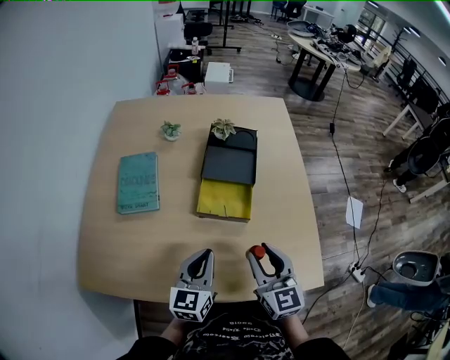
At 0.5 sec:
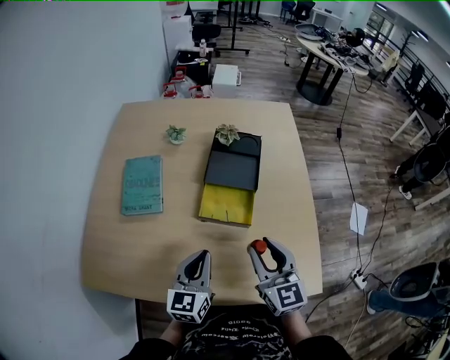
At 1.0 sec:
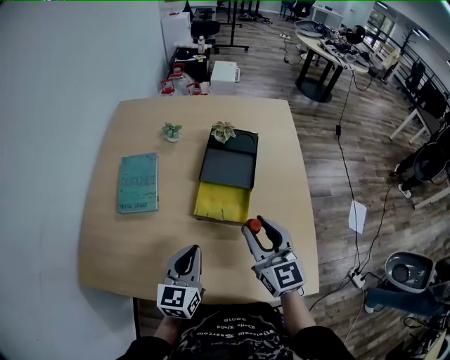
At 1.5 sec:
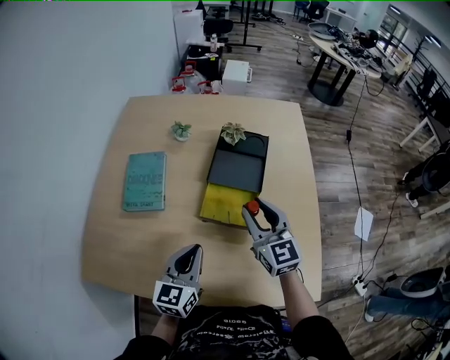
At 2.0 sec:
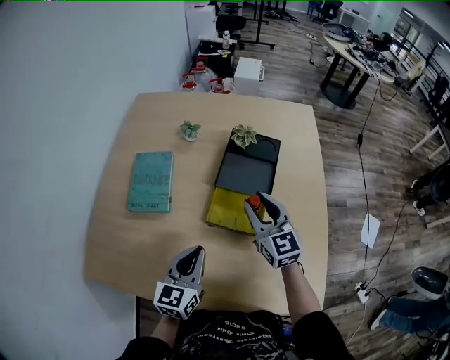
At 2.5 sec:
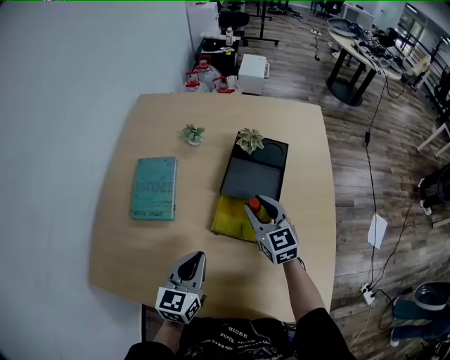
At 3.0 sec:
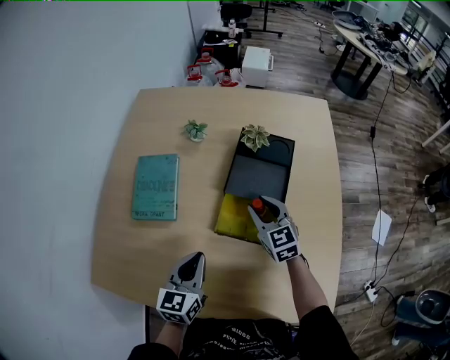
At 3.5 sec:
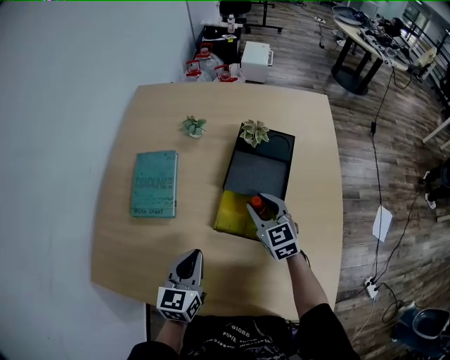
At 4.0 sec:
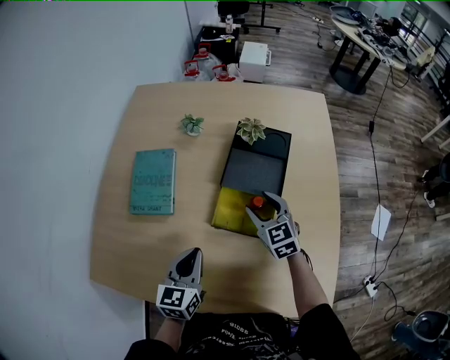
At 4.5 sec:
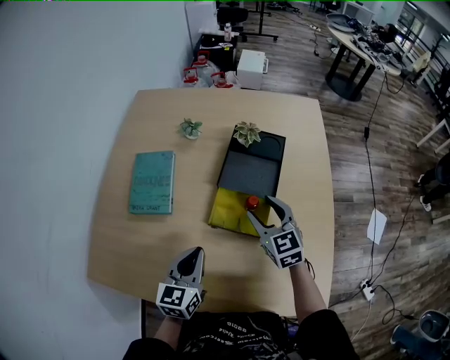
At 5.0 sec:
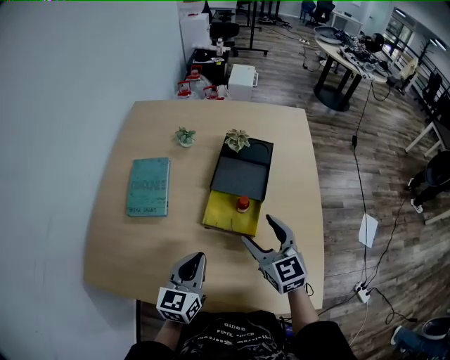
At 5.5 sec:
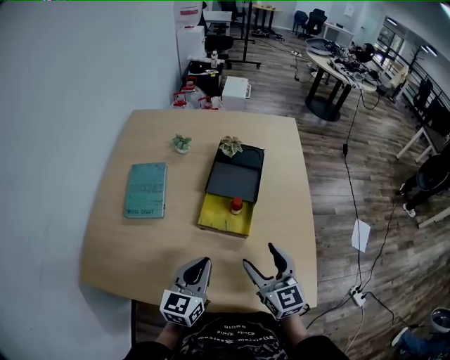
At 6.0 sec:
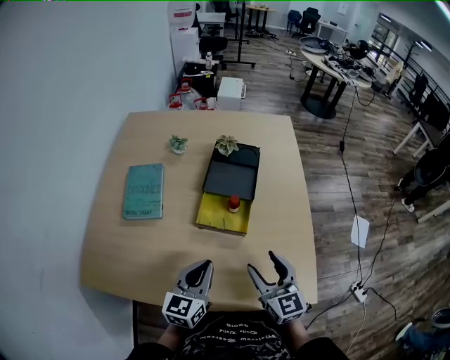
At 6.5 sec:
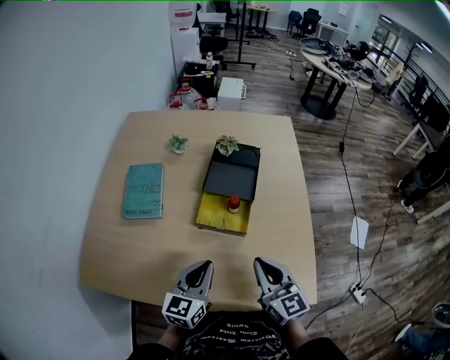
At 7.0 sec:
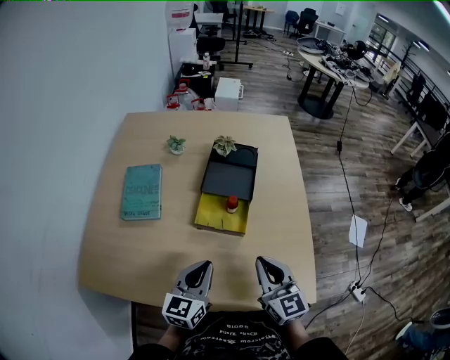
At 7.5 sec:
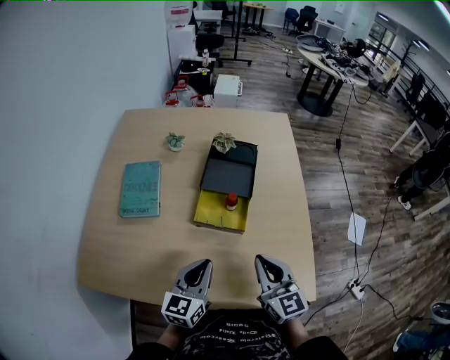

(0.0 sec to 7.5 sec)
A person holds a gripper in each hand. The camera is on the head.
0.0 sec - 2.0 sec: The right gripper shifts about 20 cm forward. Meanwhile the left gripper travels forward by about 5 cm.
2.0 sec - 4.0 sec: The right gripper shifts roughly 10 cm downward; the left gripper moves roughly 5 cm.
4.0 sec - 5.5 sec: The left gripper goes about 10 cm backward, to the right and upward, while the right gripper is displaced backward and upward by some 25 cm, and swivels roughly 20 degrees.
5.5 sec - 7.5 sec: The right gripper closes up.

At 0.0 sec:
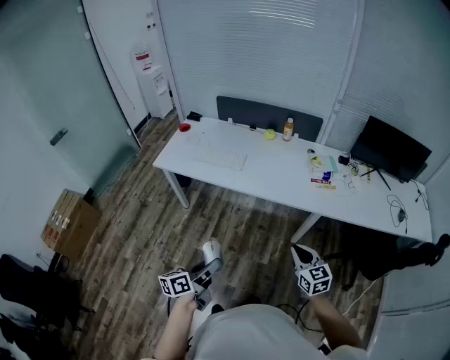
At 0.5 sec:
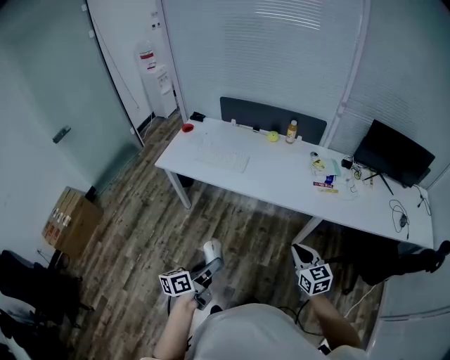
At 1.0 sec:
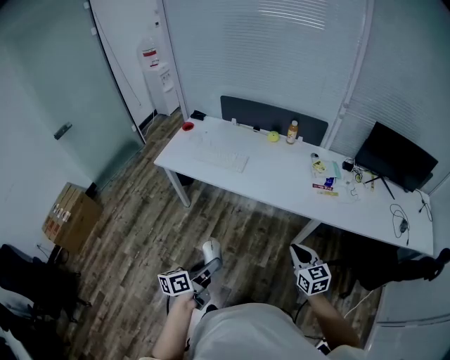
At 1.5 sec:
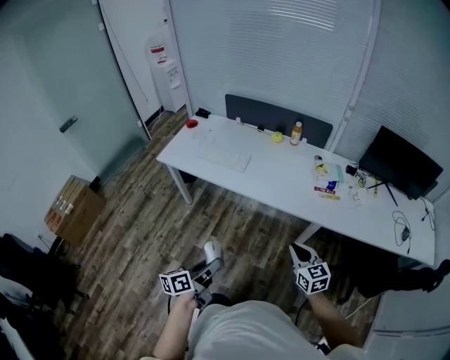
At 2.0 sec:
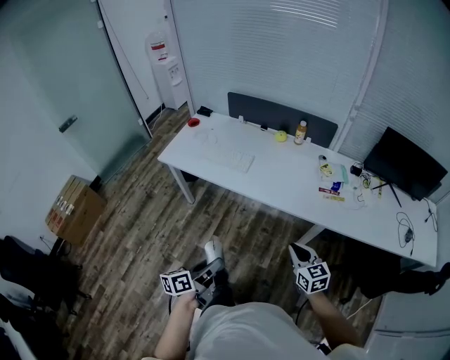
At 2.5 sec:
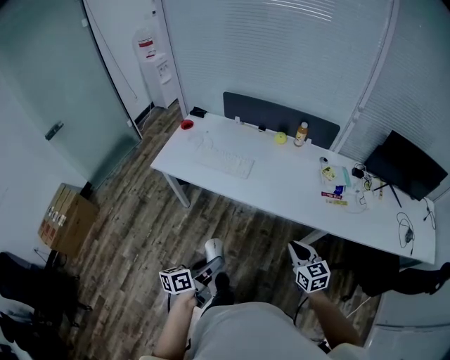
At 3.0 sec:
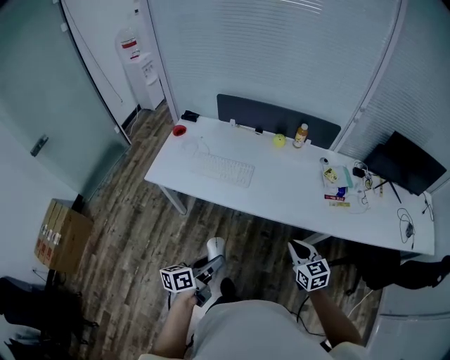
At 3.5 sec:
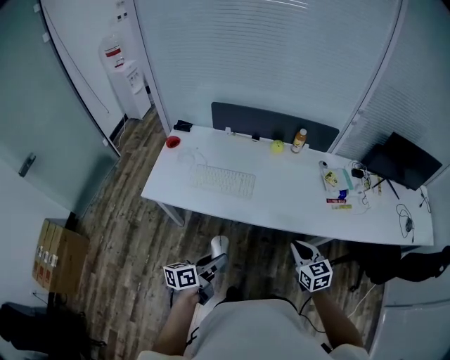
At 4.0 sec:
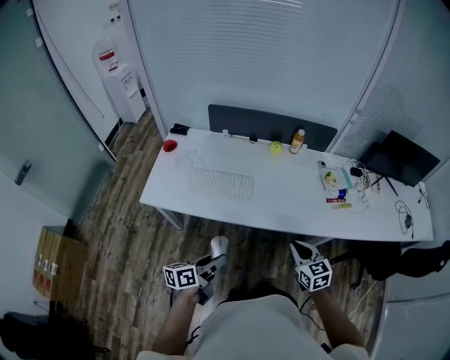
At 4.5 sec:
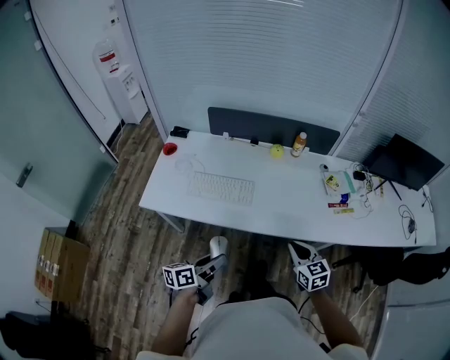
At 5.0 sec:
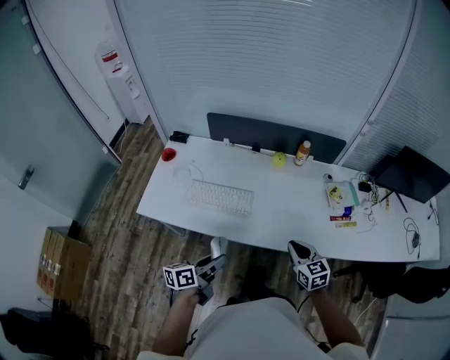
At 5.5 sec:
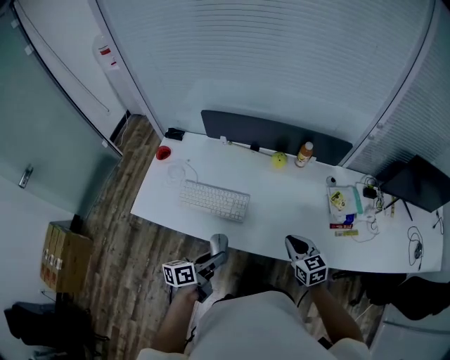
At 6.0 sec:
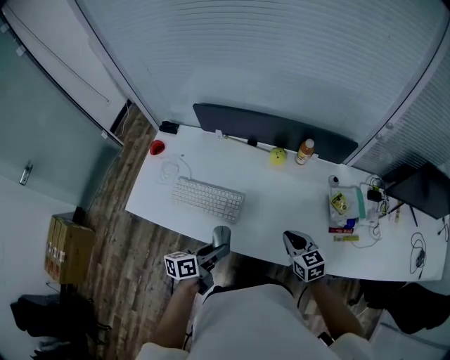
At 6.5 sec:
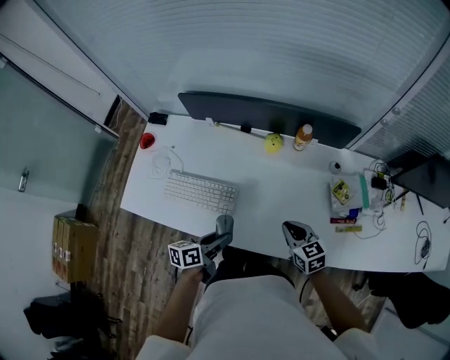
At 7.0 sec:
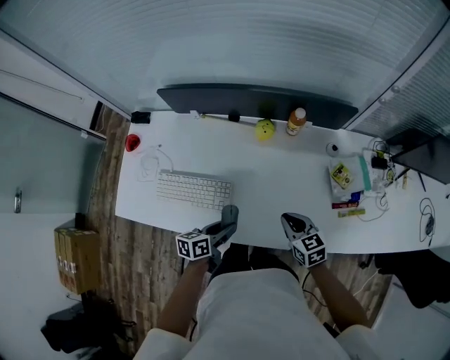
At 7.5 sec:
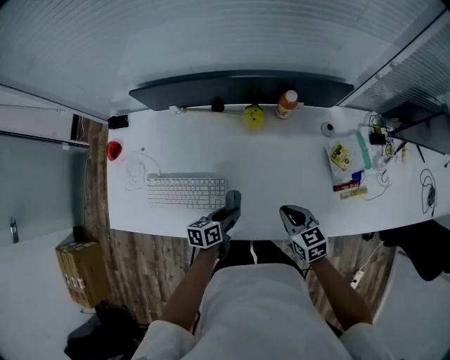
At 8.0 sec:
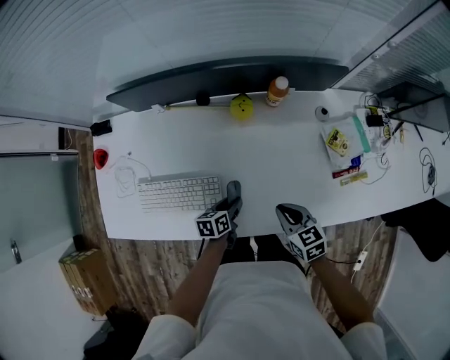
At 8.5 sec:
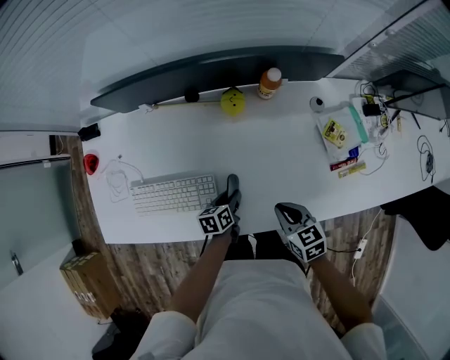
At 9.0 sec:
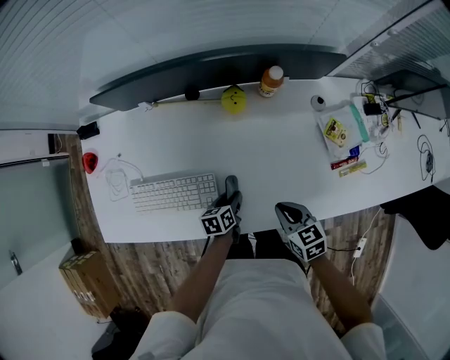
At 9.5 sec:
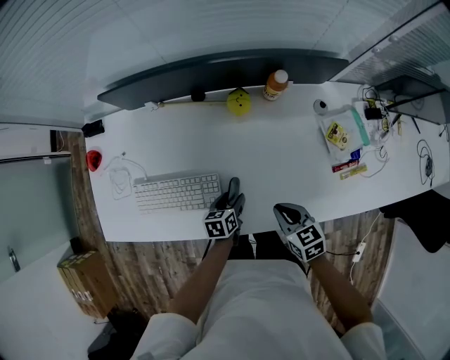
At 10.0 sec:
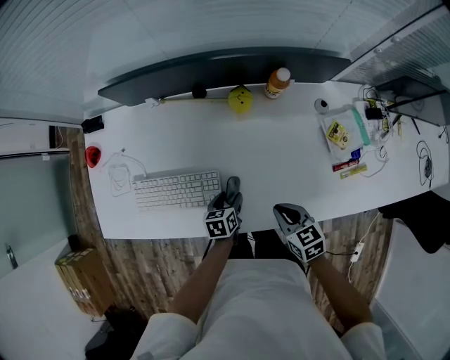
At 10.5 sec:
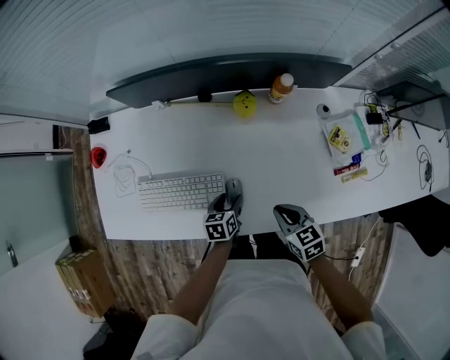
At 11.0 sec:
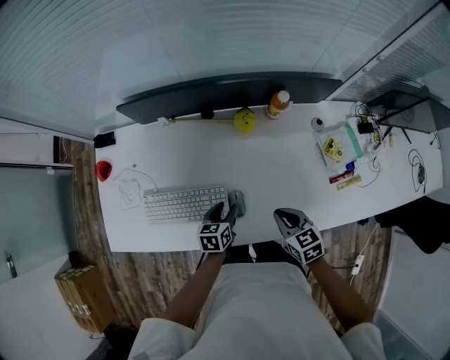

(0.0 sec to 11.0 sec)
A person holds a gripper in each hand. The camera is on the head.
0.0 sec - 2.0 sec: The right gripper goes about 5 cm forward. The left gripper shifts by some 5 cm.
2.0 sec - 3.5 sec: The grippers both shift forward and to the left by about 25 cm.
3.5 sec - 5.5 sec: The two grippers go some 20 cm forward.
5.5 sec - 7.5 sec: The right gripper shifts roughly 10 cm downward and forward; the left gripper moves downward, forward and to the right, roughly 25 cm, and turns by roughly 20 degrees.
7.5 sec - 9.0 sec: The left gripper is displaced downward by approximately 10 cm.
9.0 sec - 11.0 sec: The left gripper is displaced upward by roughly 5 cm.

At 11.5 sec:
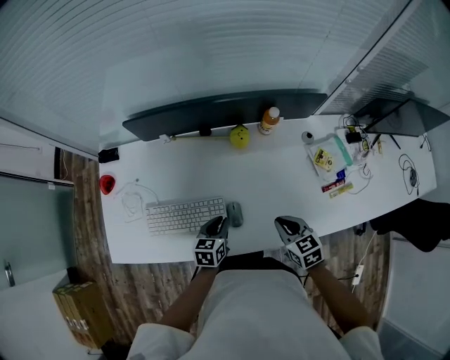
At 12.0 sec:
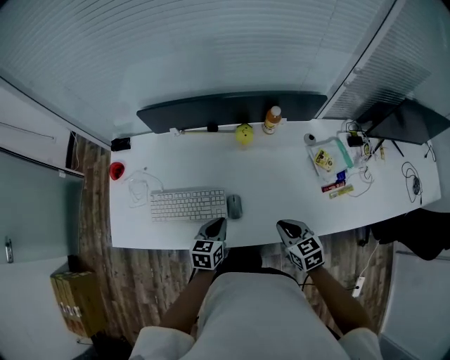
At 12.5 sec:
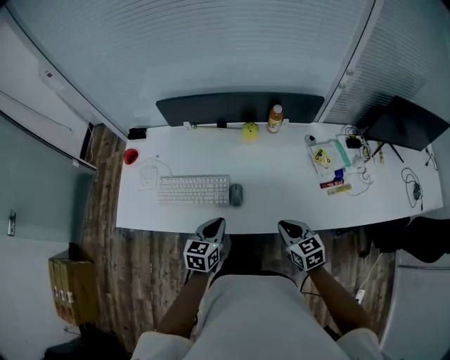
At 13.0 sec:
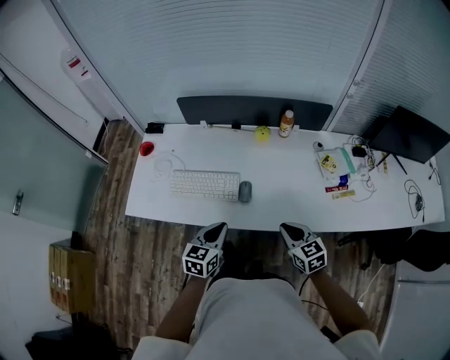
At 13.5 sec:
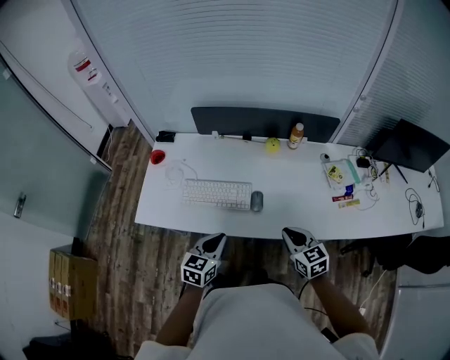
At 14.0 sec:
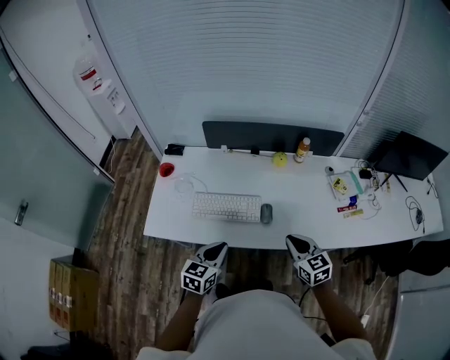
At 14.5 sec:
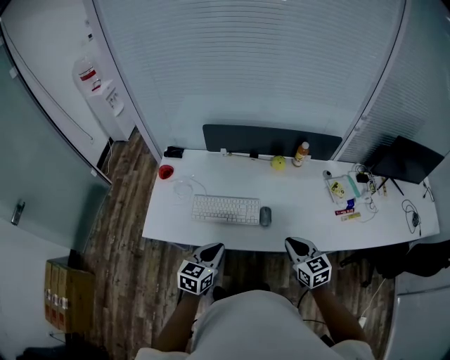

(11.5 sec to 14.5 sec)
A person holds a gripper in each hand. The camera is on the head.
11.5 sec - 13.0 sec: Both grippers travel together backward and upward, about 20 cm.
13.0 sec - 14.5 sec: The right gripper heads to the left and upward, covering roughly 10 cm. Meanwhile the left gripper goes some 10 cm to the left.

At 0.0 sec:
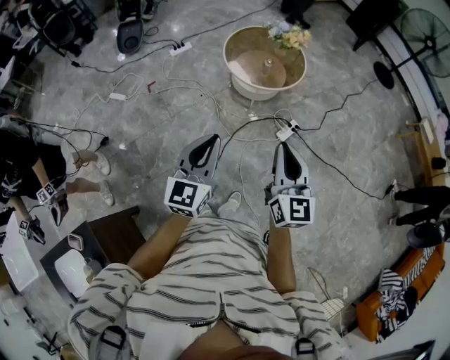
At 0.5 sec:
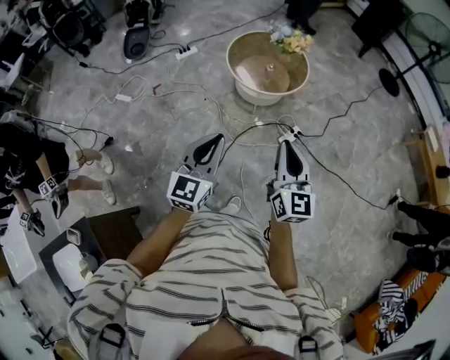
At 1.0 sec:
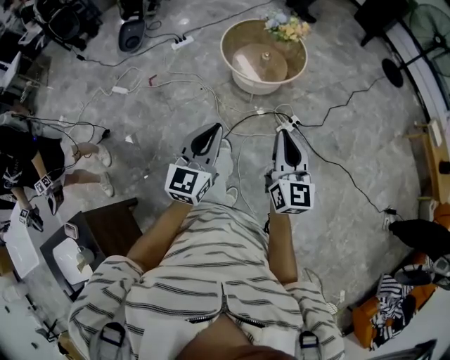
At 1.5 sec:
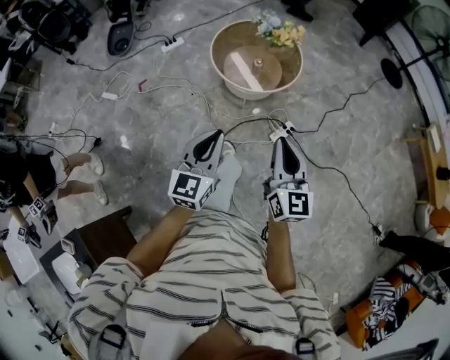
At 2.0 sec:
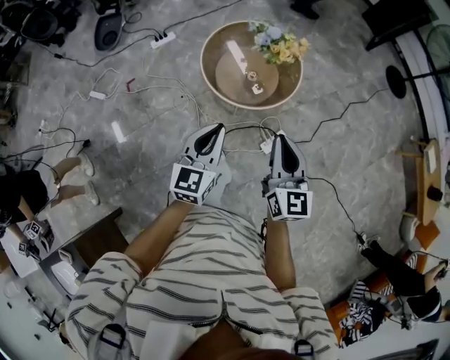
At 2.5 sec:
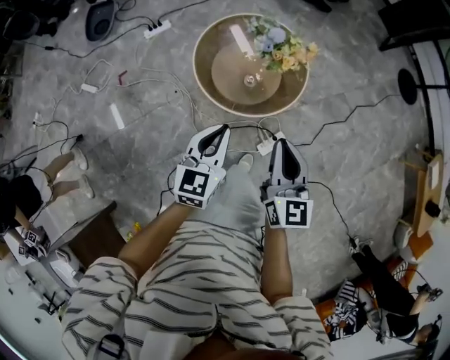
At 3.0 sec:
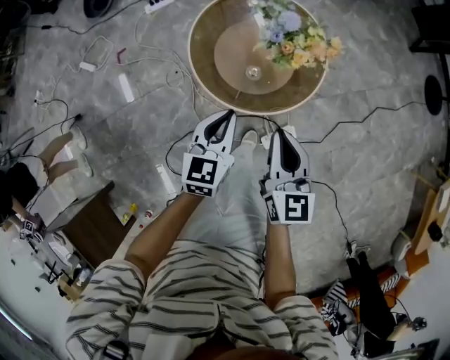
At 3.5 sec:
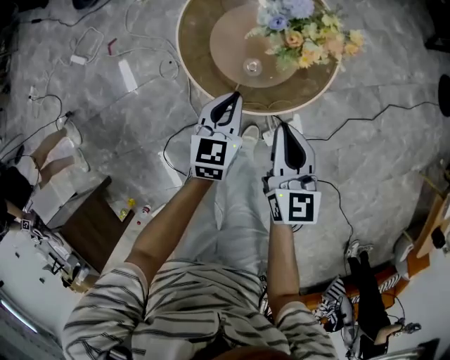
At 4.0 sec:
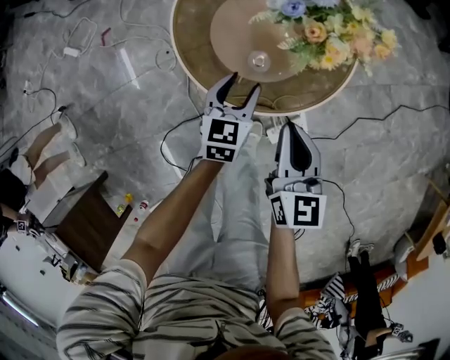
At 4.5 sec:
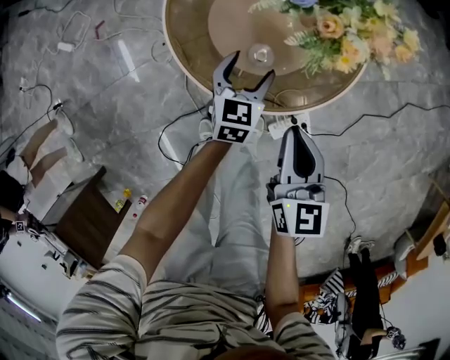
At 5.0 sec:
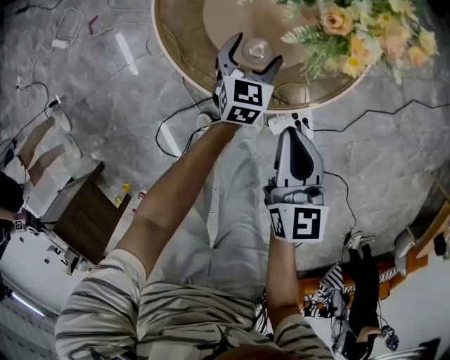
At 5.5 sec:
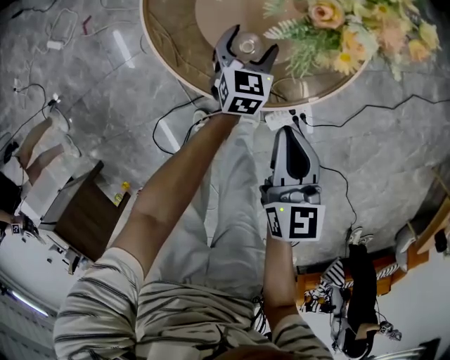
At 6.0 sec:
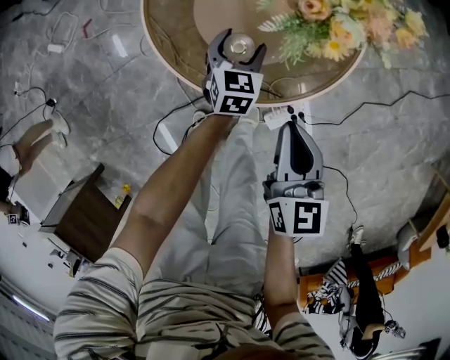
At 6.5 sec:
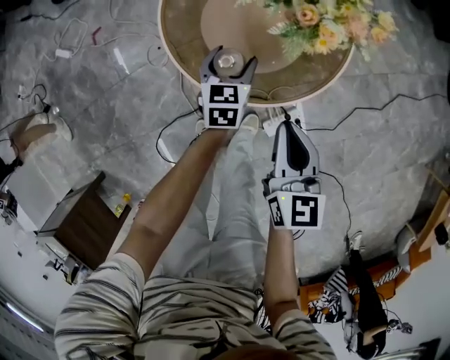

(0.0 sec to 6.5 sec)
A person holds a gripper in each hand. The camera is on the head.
0.0 sec - 2.0 sec: The two grippers go approximately 35 cm forward.
2.0 sec - 4.5 sec: Both grippers move downward and forward, some 50 cm. The left gripper changes its angle by roughly 30 degrees, and opens; the right gripper swivels about 20 degrees.
4.5 sec - 6.5 sec: The left gripper goes downward and returns, about 5 cm each way.
